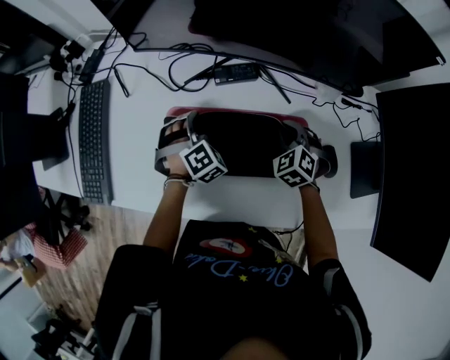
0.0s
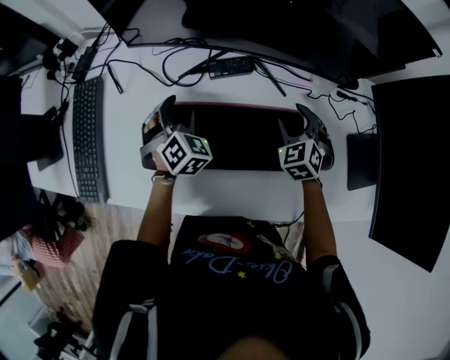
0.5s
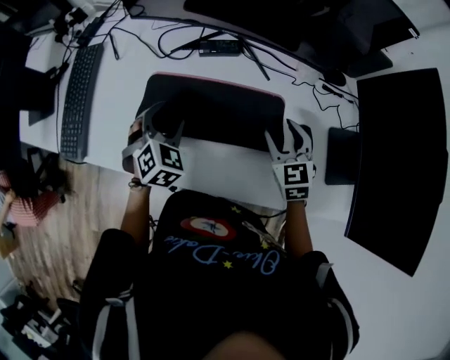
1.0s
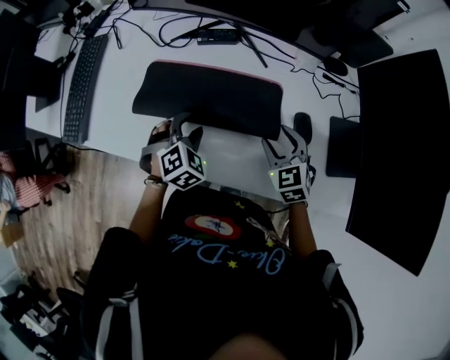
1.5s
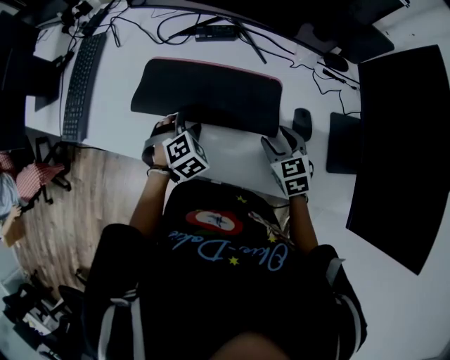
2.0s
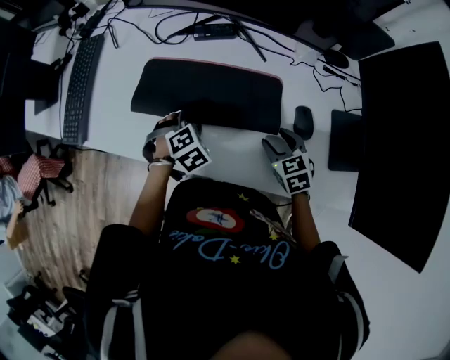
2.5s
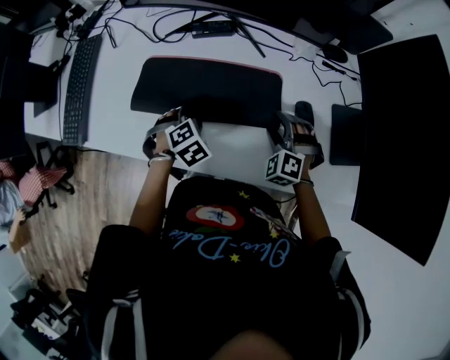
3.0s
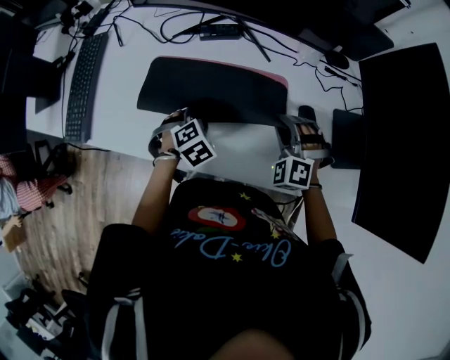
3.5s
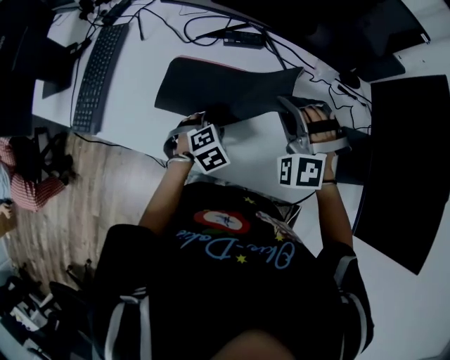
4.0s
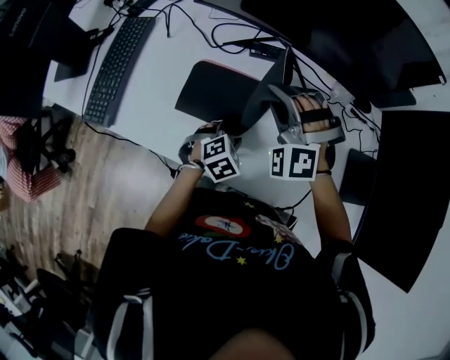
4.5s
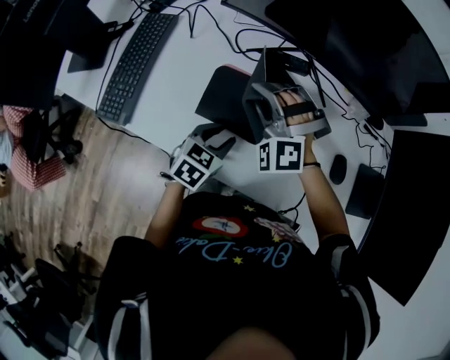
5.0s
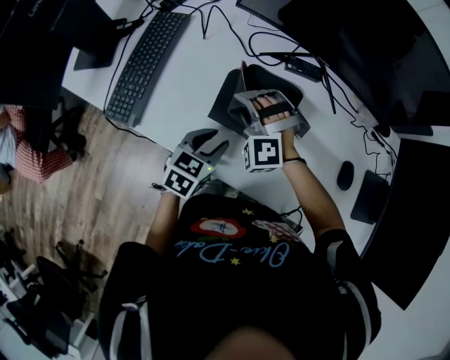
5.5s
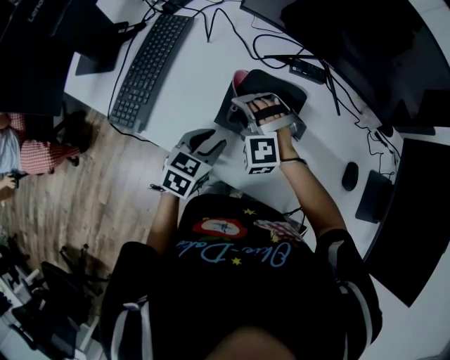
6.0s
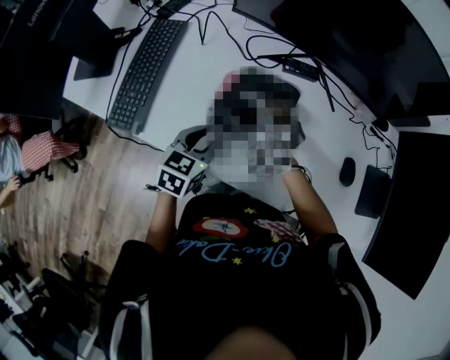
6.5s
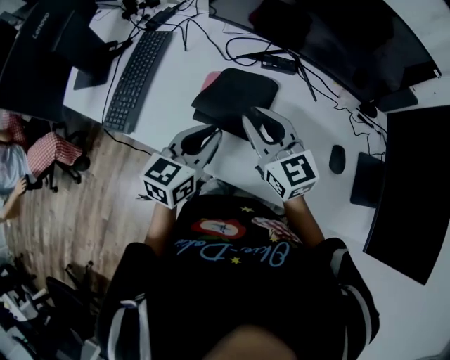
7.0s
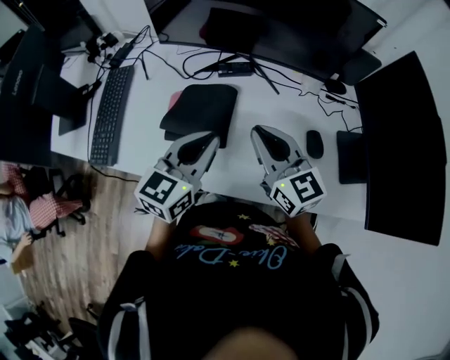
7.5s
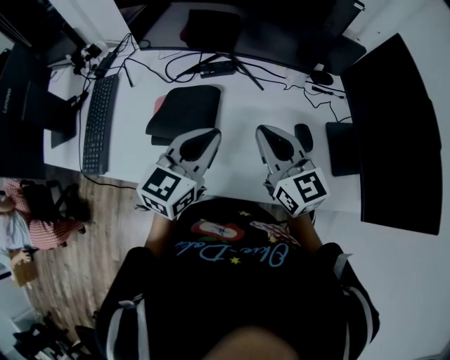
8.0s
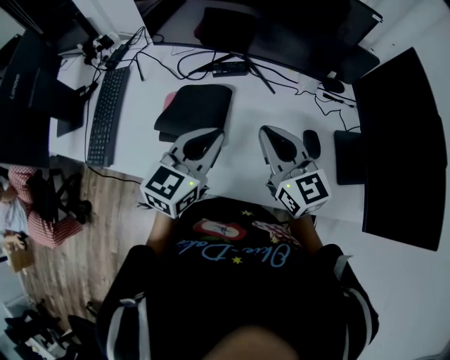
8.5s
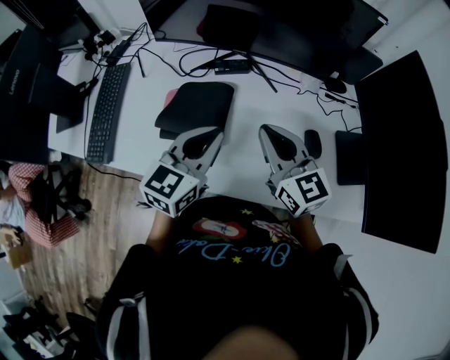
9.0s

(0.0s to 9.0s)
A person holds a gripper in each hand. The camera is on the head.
0.0s - 2.0s: The grippers both shift backward by some 15 cm. The right gripper turns by some 30 degrees, and opens up.
2.0s - 4.5s: The right gripper goes some 30 cm to the left, upward and forward, rotates around the line of its fingers by approximately 80 degrees, counterclockwise from behind, and closes its fingers.
4.5s - 7.0s: The left gripper shifts roughly 20 cm upward and to the left, and tips its fingers upward by approximately 40 degrees. Meanwhile the right gripper goes about 10 cm to the left and backward, rotates around the line of its fingers by approximately 80 degrees, clockwise from behind, and opens, then closes again.
7.0s - 9.0s: The right gripper travels to the right by roughly 15 cm. Meanwhile the left gripper goes some 15 cm to the right and upward.

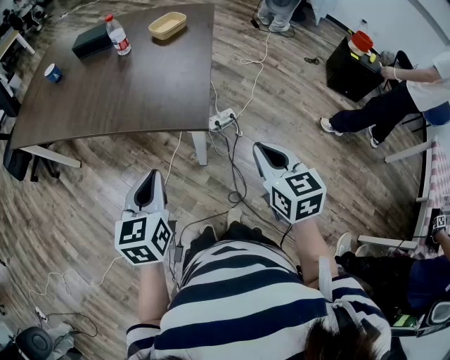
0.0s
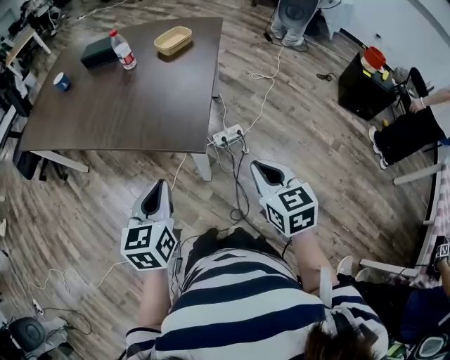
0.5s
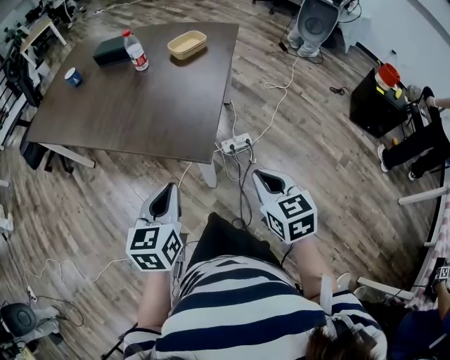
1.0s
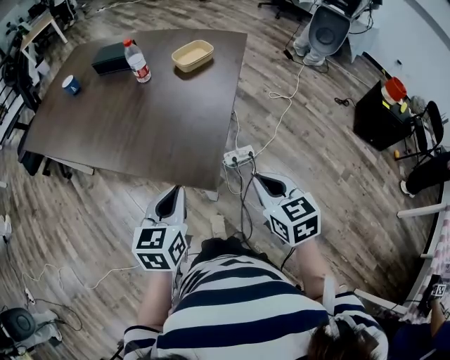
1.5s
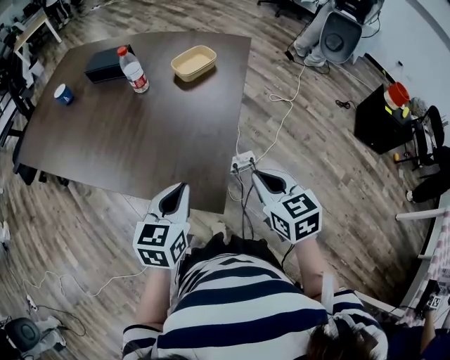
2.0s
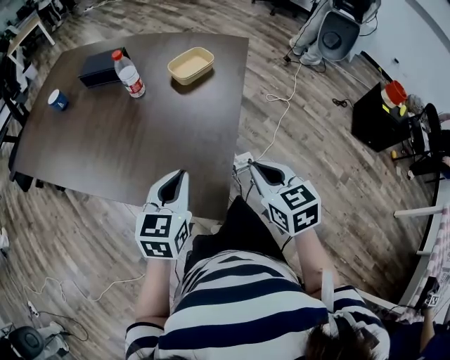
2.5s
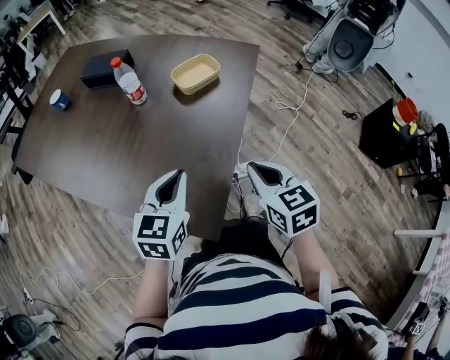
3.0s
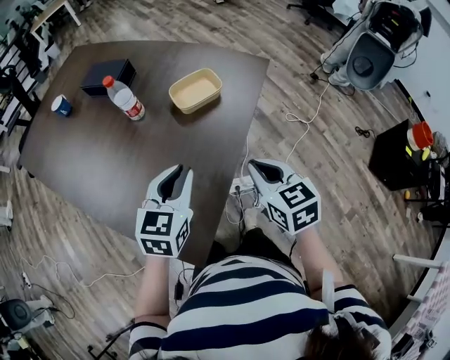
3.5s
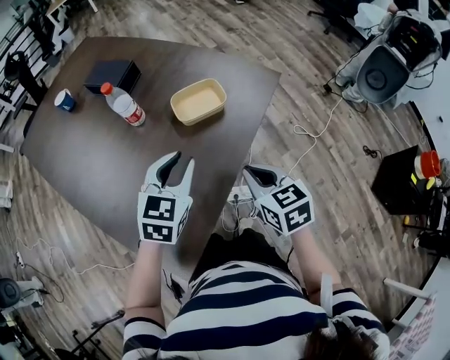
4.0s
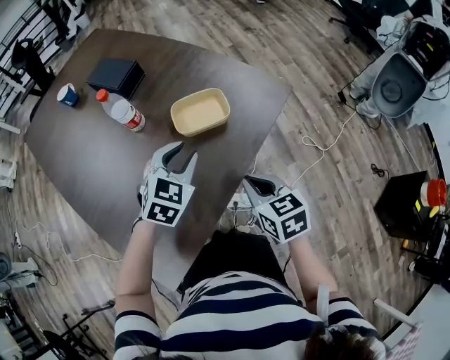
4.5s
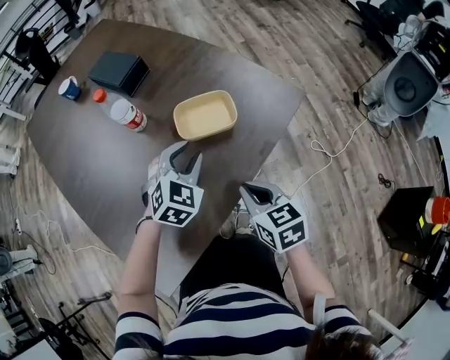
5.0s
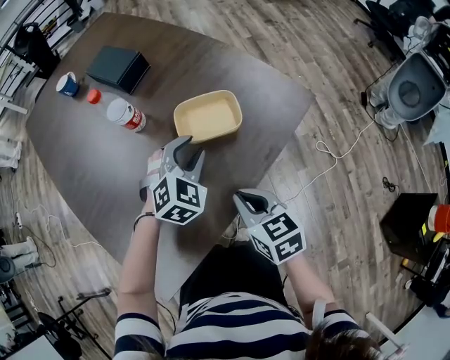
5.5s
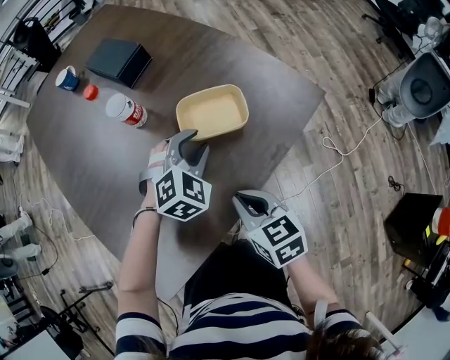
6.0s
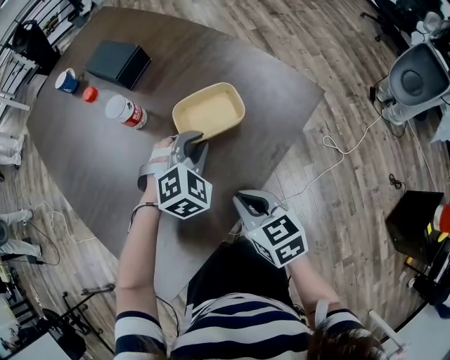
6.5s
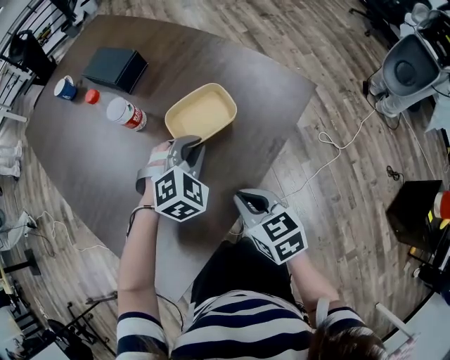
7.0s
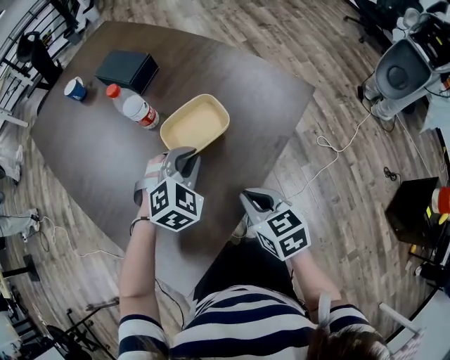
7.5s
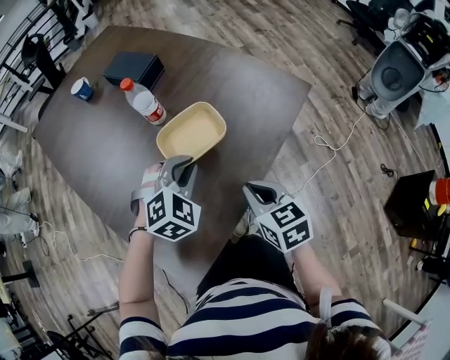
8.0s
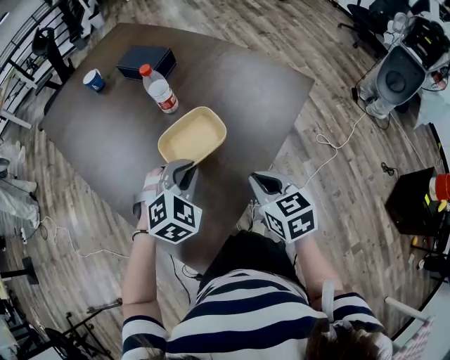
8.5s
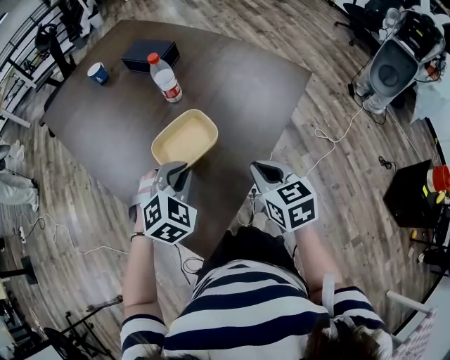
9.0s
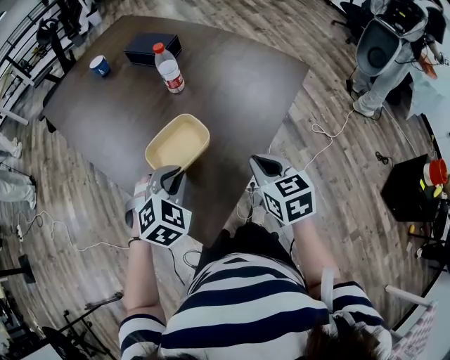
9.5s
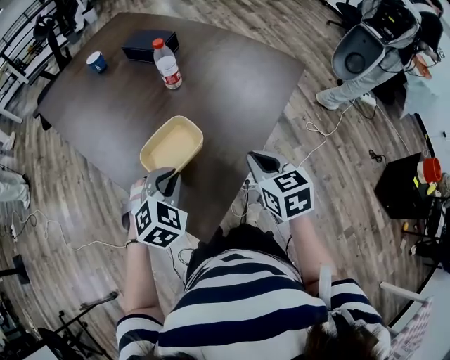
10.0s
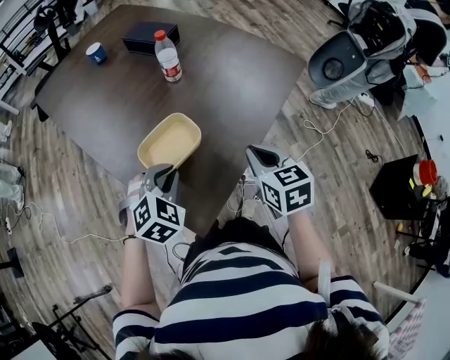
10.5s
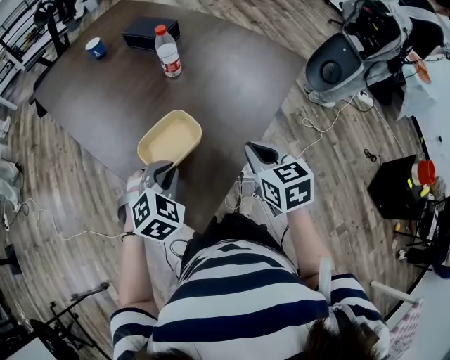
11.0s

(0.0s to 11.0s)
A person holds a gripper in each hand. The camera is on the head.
0.0s - 2.0s: Both grippers travel together forward, some 25 cm.
2.0s - 3.5s: The left gripper heads forward and to the right, covering roughly 25 cm. The right gripper moves forward, some 25 cm.
3.5s - 5.5s: The right gripper shifts approximately 20 cm forward and downward, and rotates approximately 20 degrees. The left gripper shifts some 30 cm forward, downward and to the right, and swivels approximately 40 degrees.
5.5s - 7.5s: The left gripper heads to the left, covering roughly 5 cm. Meanwhile the right gripper shifts by roughly 5 cm.
7.5s - 9.0s: The right gripper shifts about 10 cm backward, upward and to the left. The left gripper goes some 20 cm backward and to the left.
9.0s - 11.0s: The left gripper travels backward and to the left by approximately 10 cm.

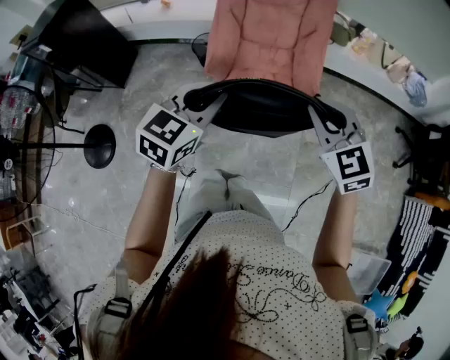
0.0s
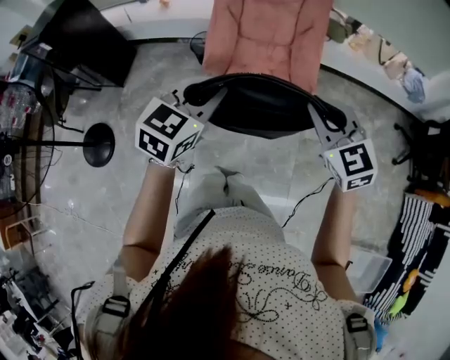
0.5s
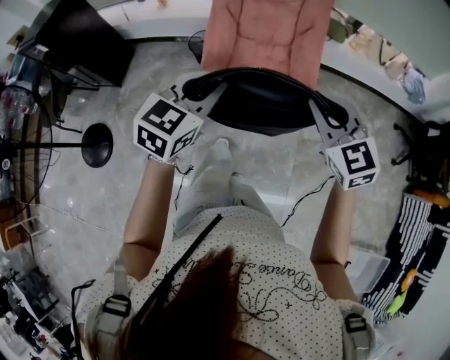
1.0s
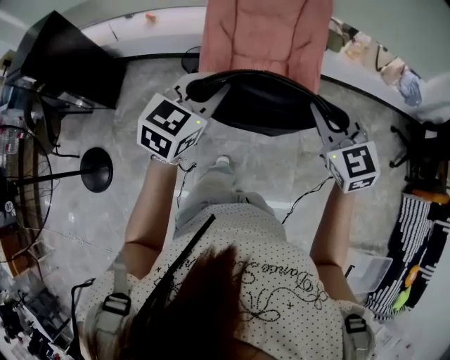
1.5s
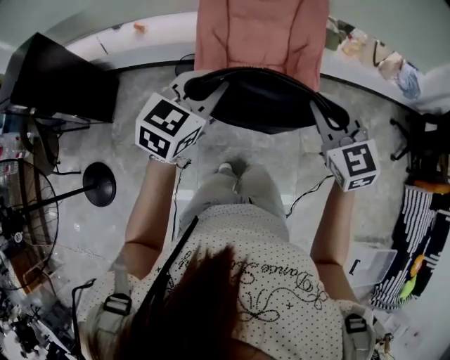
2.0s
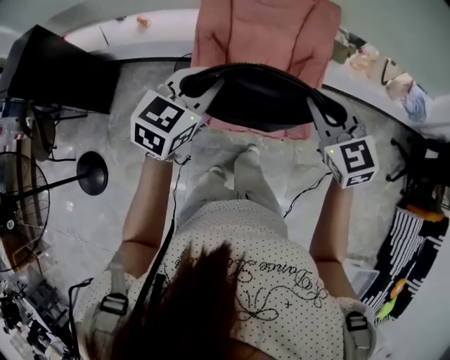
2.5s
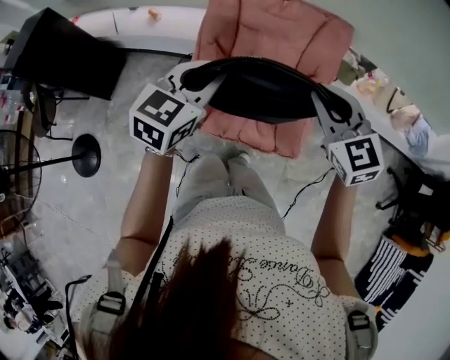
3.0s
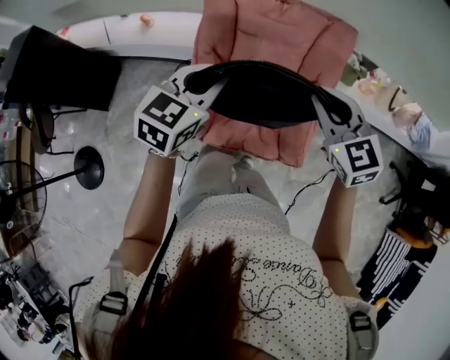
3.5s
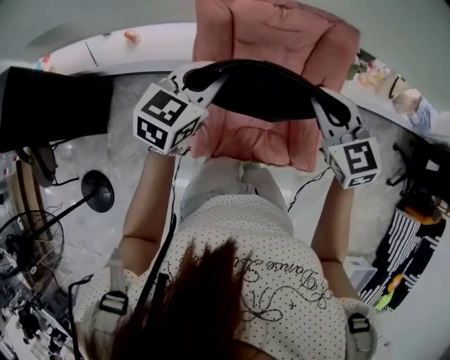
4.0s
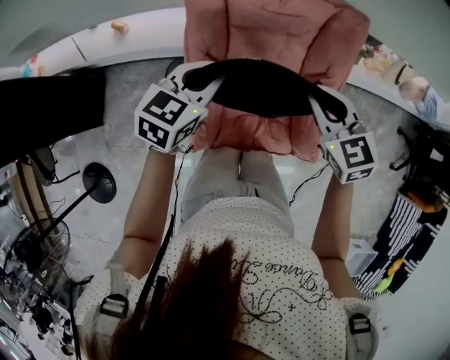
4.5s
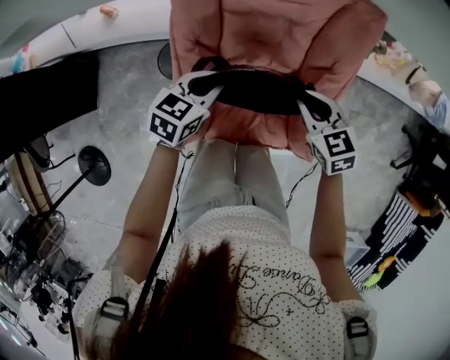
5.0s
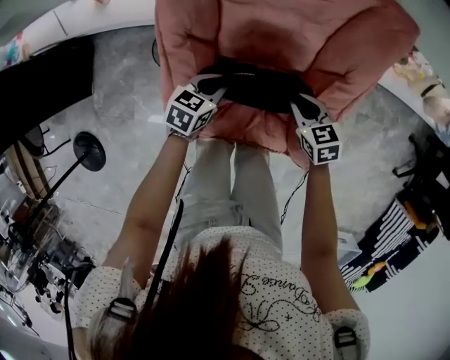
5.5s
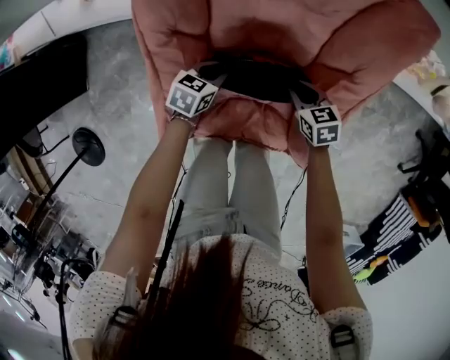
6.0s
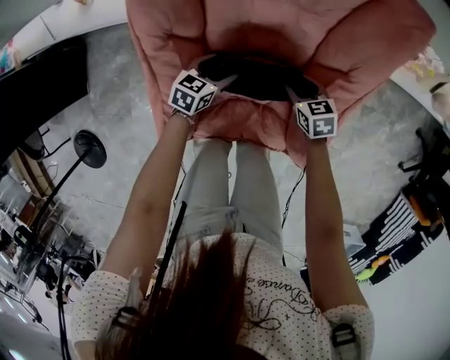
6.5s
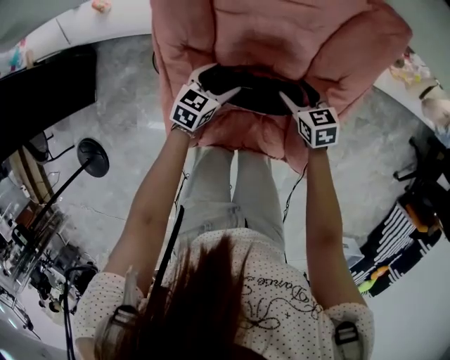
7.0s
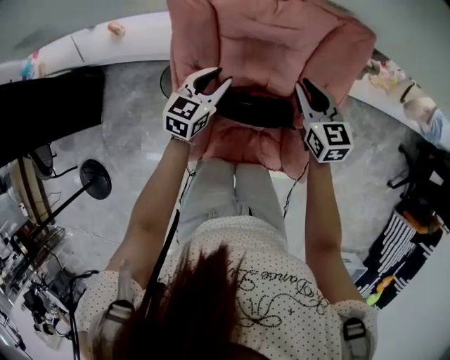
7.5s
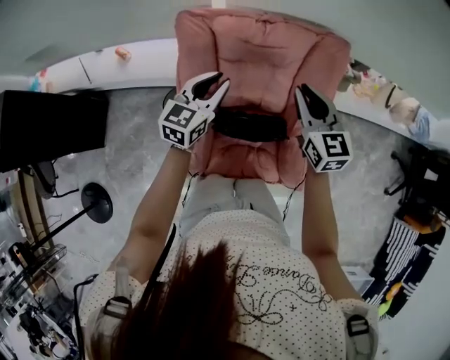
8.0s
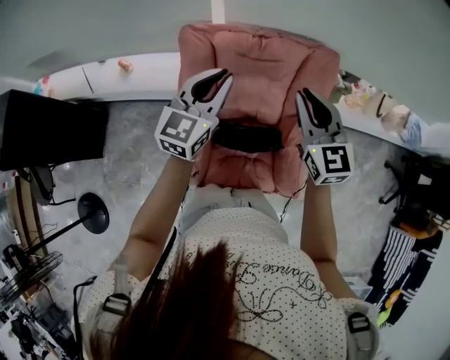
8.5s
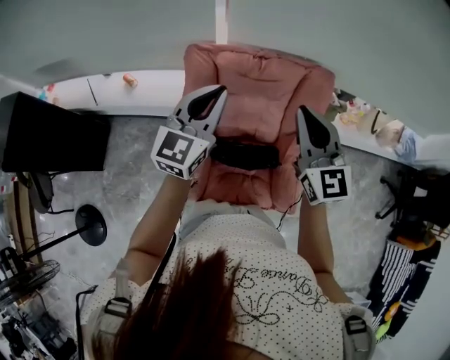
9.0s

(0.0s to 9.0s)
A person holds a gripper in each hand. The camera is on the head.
0.0s - 2.0s: The grippers both shift forward by some 15 cm.
2.0s - 4.5s: The grippers both shift forward by some 30 cm.
4.5s - 7.0s: Both grippers move downward, roughly 30 cm. The left gripper opens its fingers; the right gripper changes its angle by about 30 degrees, and opens up.
7.0s - 9.0s: Both grippers move upward, approximately 40 cm. The left gripper angles its fingers upward, by approximately 40 degrees, and closes. Meanwhile the right gripper points its fingers some 40 degrees further upward, and closes its fingers.
